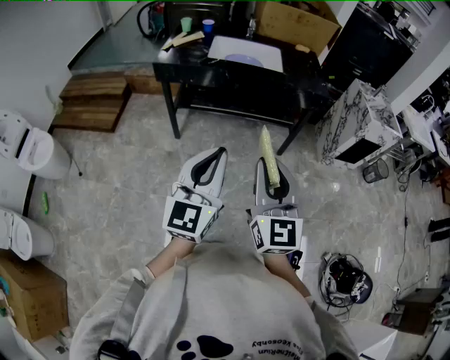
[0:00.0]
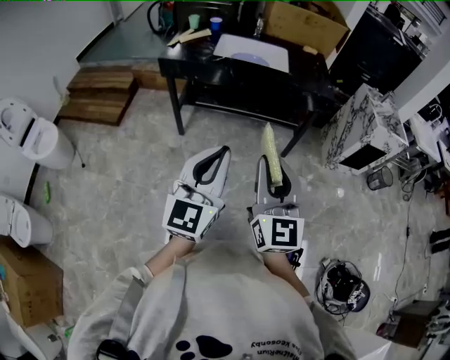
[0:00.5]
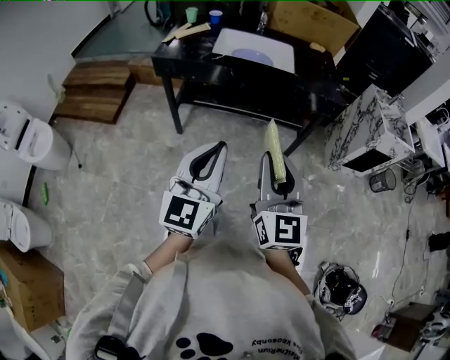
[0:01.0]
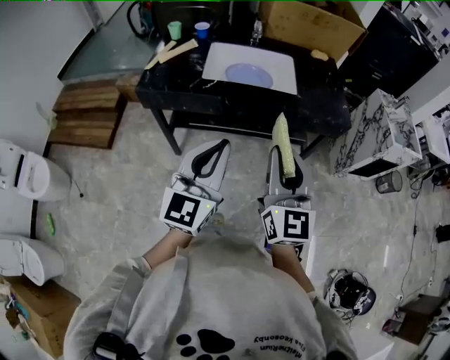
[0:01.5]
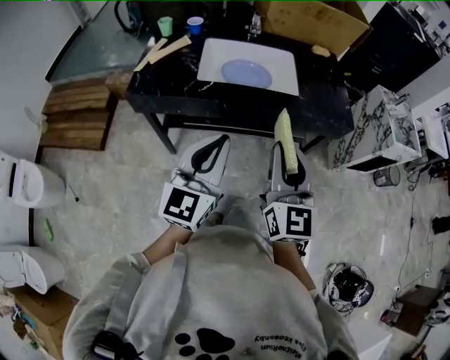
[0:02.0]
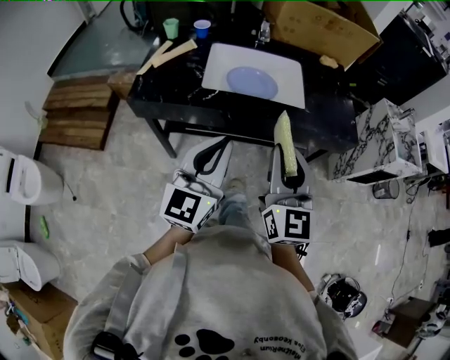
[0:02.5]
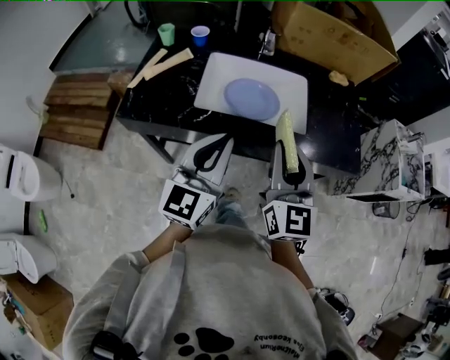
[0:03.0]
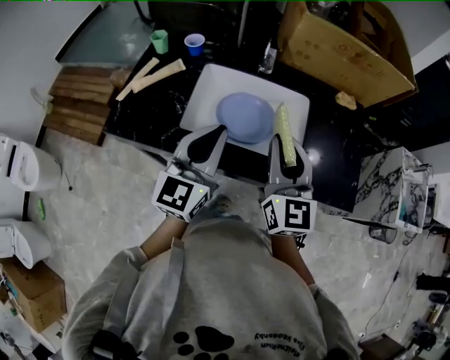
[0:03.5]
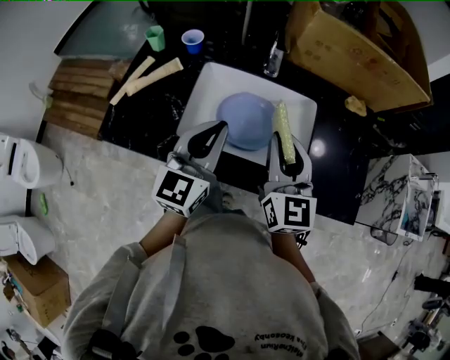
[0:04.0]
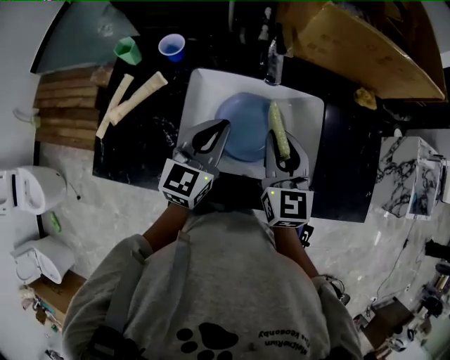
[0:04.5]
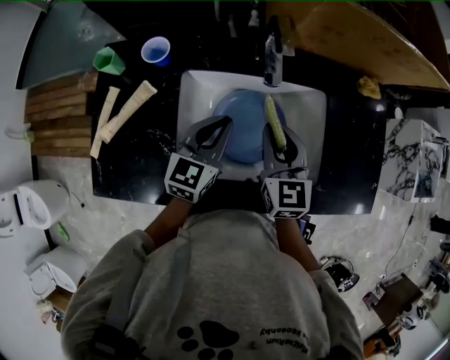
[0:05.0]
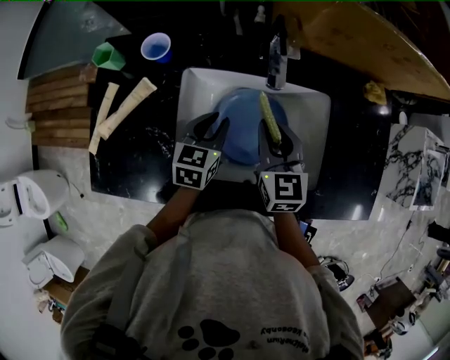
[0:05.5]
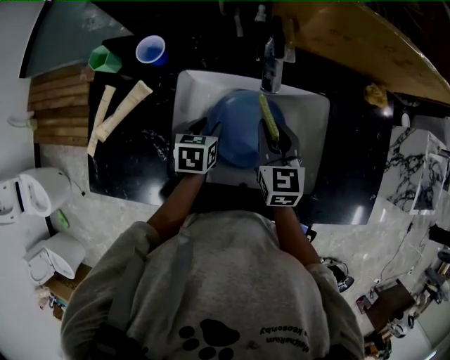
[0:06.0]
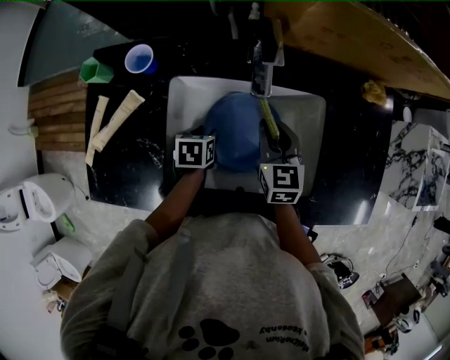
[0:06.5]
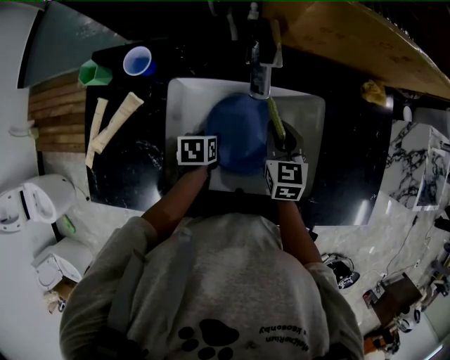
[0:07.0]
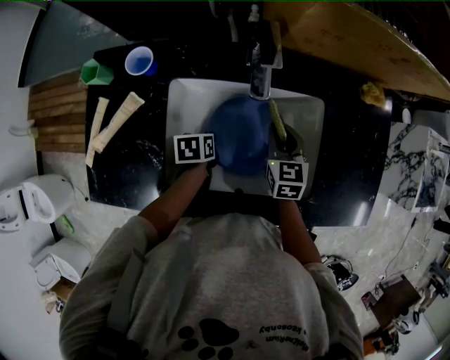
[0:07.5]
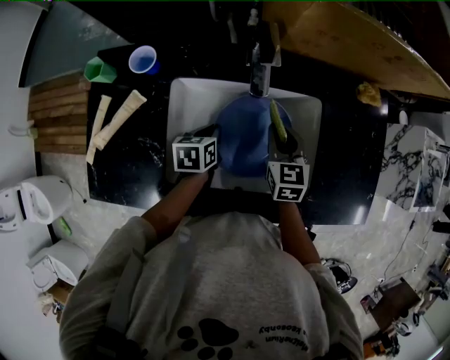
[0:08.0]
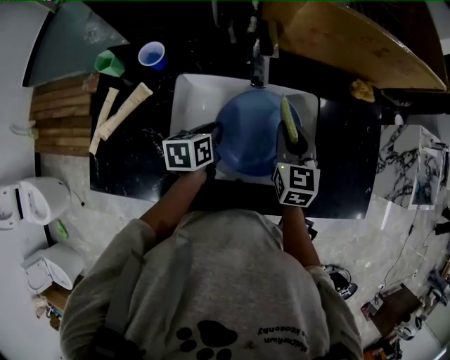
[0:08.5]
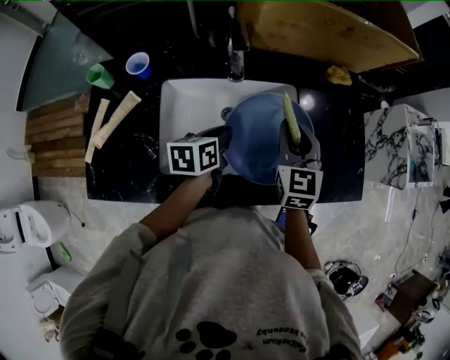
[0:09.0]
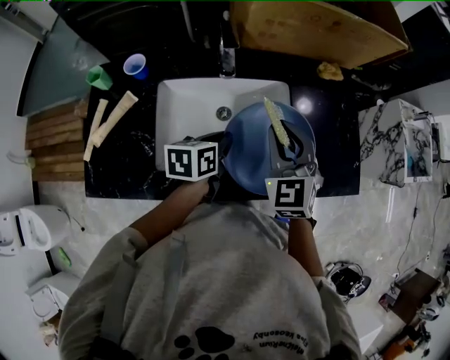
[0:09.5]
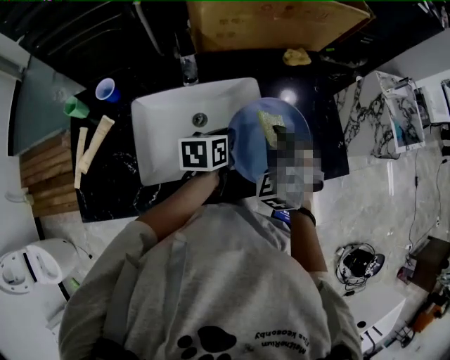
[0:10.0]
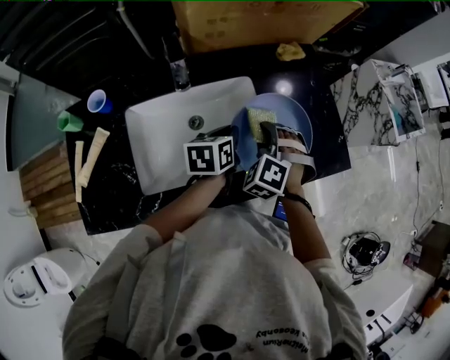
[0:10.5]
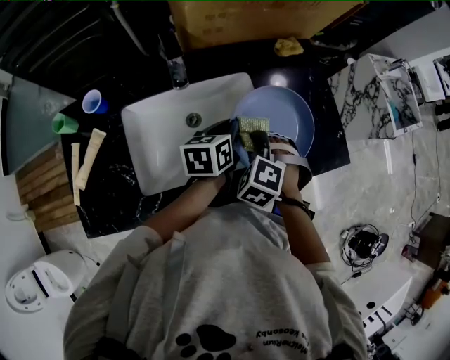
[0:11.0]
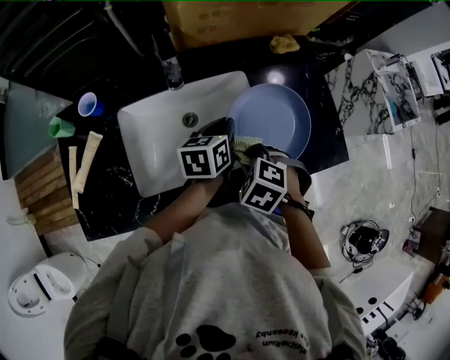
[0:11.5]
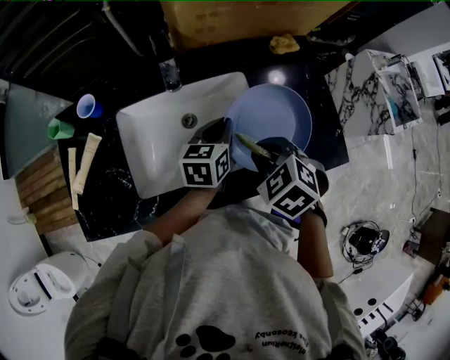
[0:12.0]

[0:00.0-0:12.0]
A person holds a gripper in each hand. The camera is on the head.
0:00.0 to 0:02.0: Both grippers move forward, some 35 cm.
0:02.0 to 0:04.0: Both grippers move forward, about 35 cm.
0:04.0 to 0:06.0: The grippers both shift downward and forward by about 25 cm. The right gripper turns by roughly 20 degrees. The left gripper tips its fingers downward by roughly 50 degrees, and opens.
0:06.0 to 0:08.0: The left gripper closes up, while the right gripper heads to the right, covering some 5 cm.
0:08.0 to 0:10.0: The right gripper goes about 20 cm to the right, upward and backward, and rolls counterclockwise, seen from behind, by roughly 40 degrees; the left gripper is displaced to the right and upward by approximately 20 cm, and turns by roughly 20 degrees.
0:10.0 to 0:12.0: The right gripper changes its angle by approximately 30 degrees.

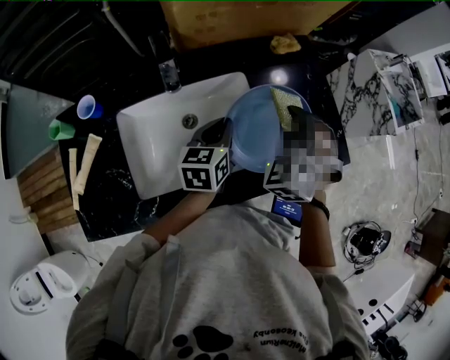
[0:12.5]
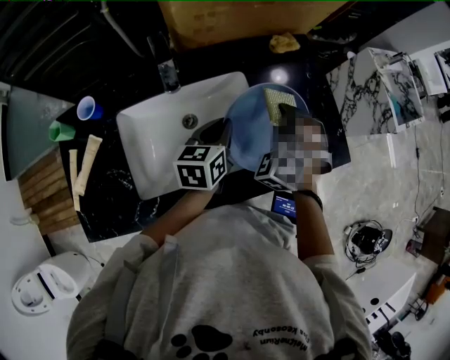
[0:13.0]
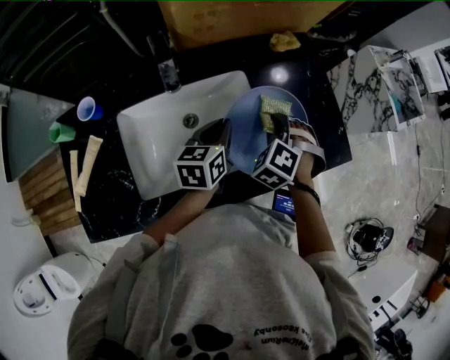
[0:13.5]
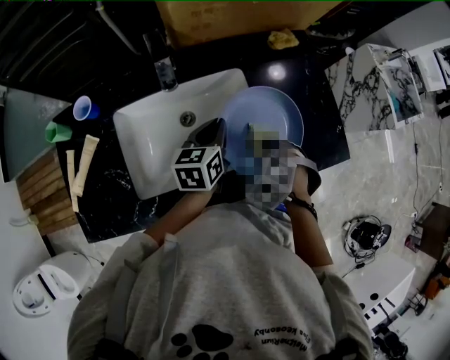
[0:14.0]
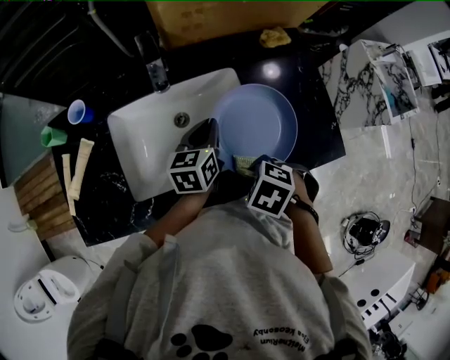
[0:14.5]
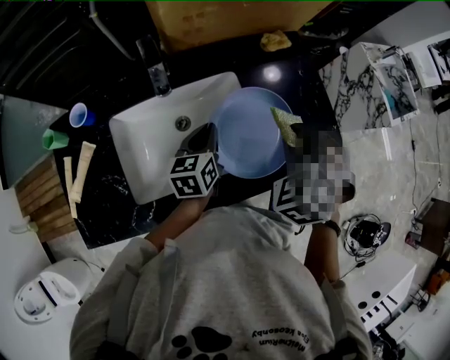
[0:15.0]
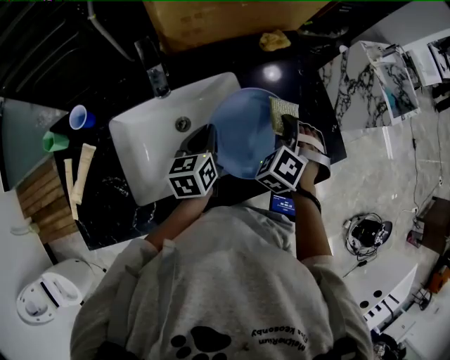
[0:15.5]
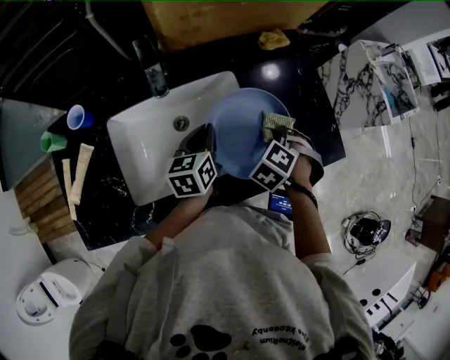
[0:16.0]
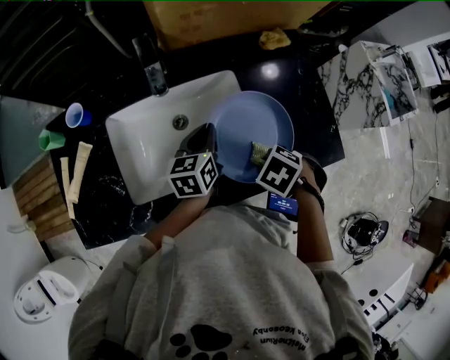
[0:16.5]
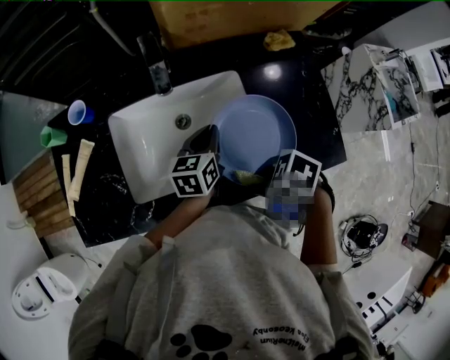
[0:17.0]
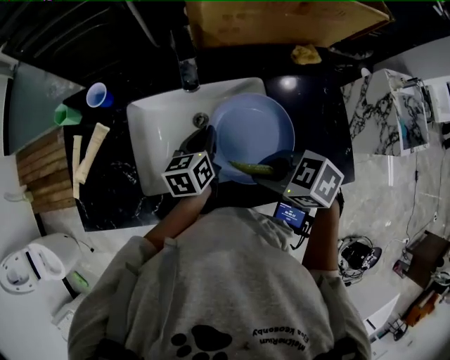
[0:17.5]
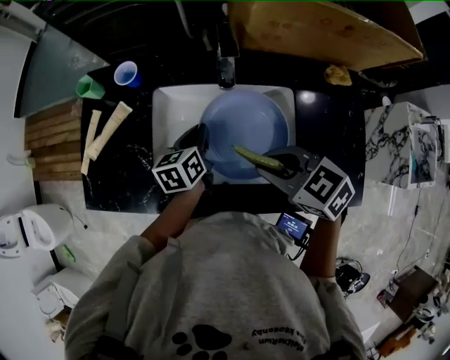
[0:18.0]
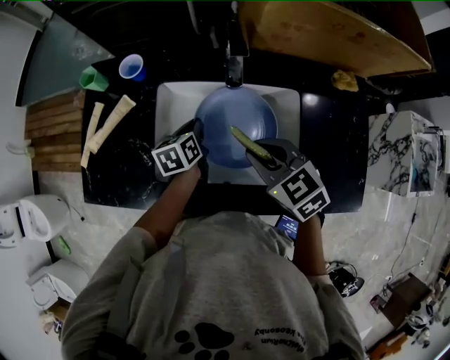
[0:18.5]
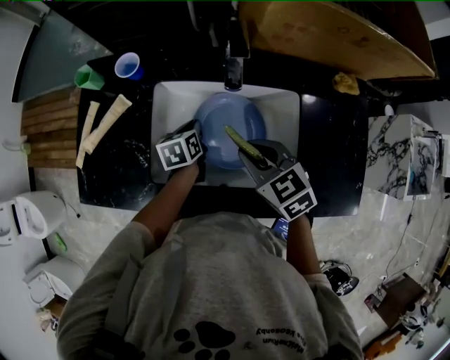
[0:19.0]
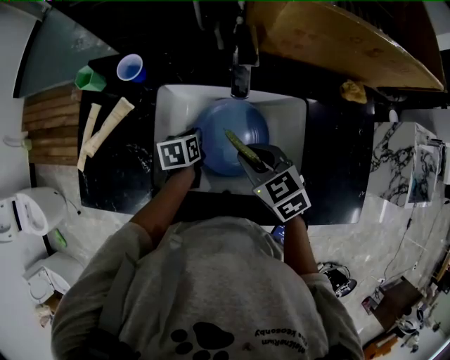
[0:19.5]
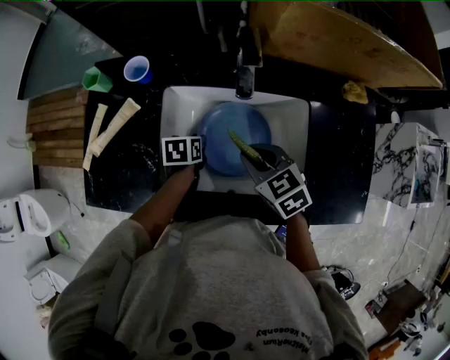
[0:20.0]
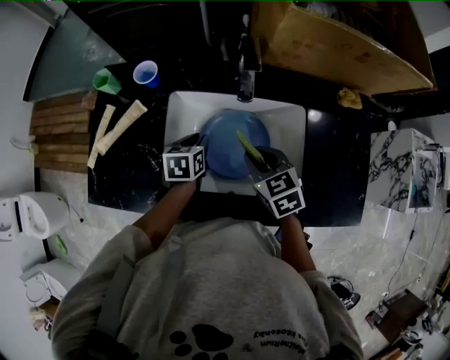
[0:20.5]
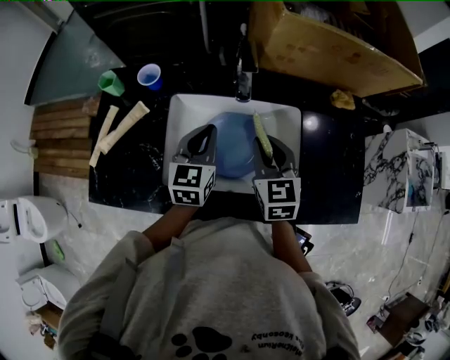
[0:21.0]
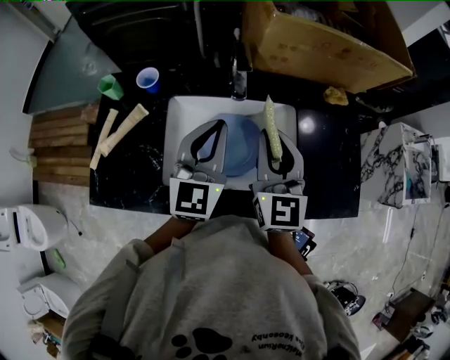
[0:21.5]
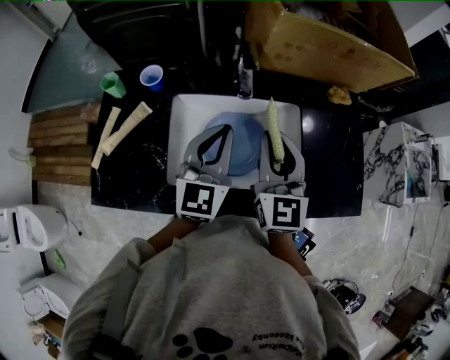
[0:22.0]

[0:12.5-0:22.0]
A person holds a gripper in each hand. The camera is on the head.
0:12.5 to 0:14.5: The right gripper moves roughly 20 cm, and tilts its fingers some 40 degrees downward.
0:14.5 to 0:16.5: The right gripper reaches roughly 15 cm upward, then returns.
0:16.5 to 0:18.0: The right gripper ends up approximately 20 cm from where it was, and tips its fingers upward by roughly 40 degrees. The left gripper changes place by roughly 15 cm, and changes its angle by some 20 degrees.
0:18.0 to 0:20.0: The right gripper heads downward and forward, covering roughly 10 cm. Meanwhile the left gripper goes some 15 cm downward, and turns by some 30 degrees.
0:20.0 to 0:22.0: The left gripper moves upward, about 30 cm, tilts its fingers roughly 50 degrees upward, and closes. Meanwhile the right gripper is displaced upward by some 15 cm, and points its fingers about 40 degrees further upward.

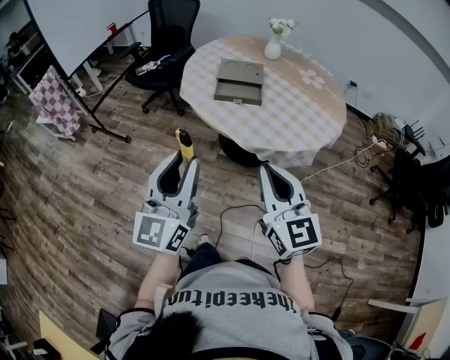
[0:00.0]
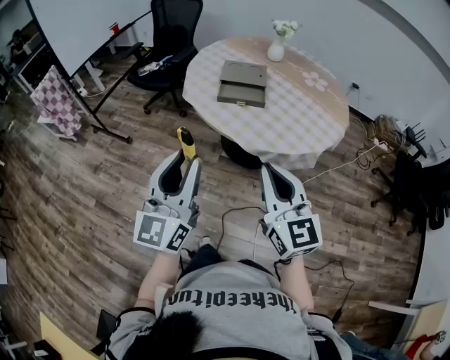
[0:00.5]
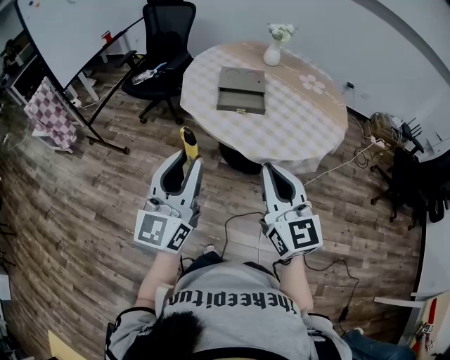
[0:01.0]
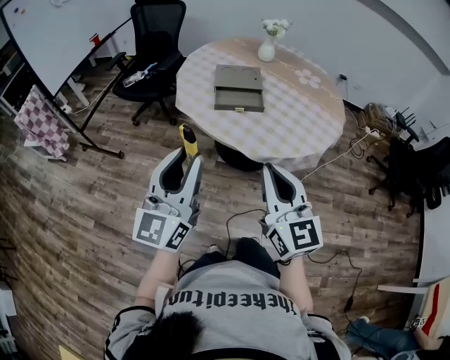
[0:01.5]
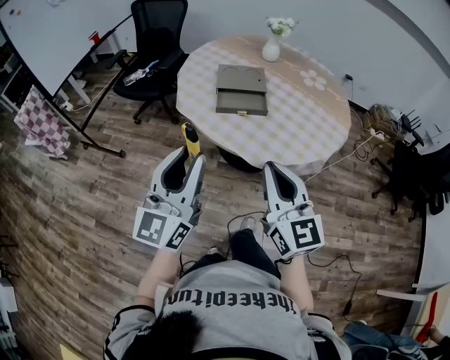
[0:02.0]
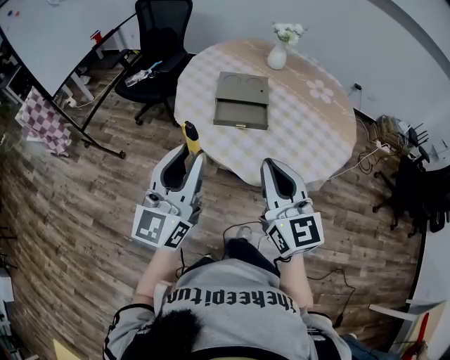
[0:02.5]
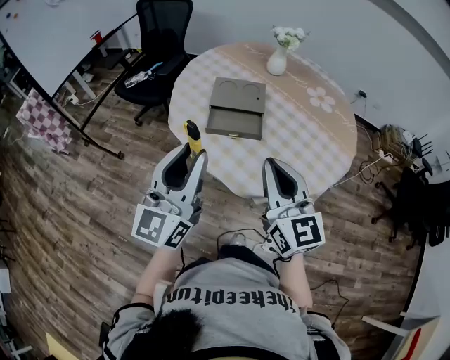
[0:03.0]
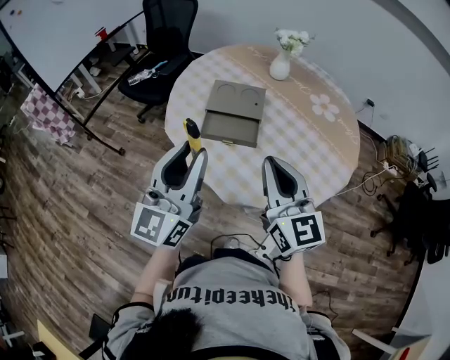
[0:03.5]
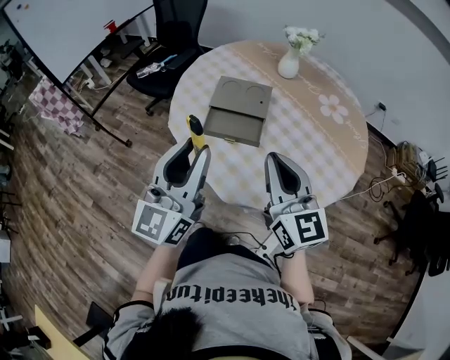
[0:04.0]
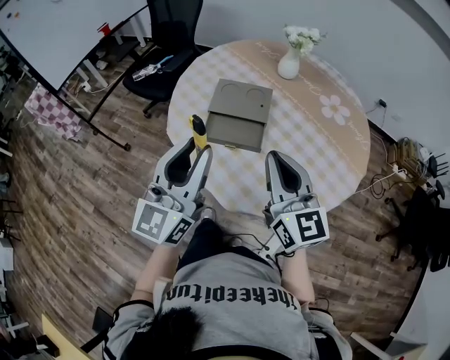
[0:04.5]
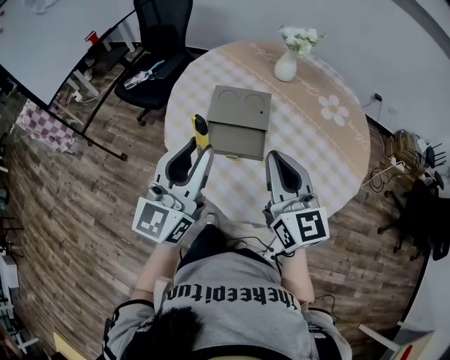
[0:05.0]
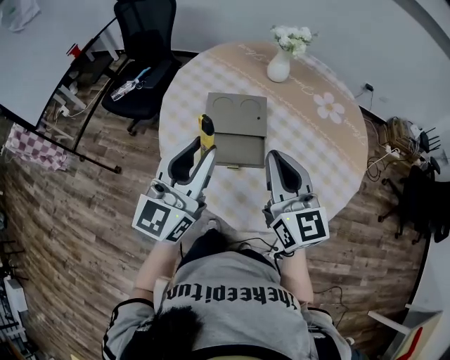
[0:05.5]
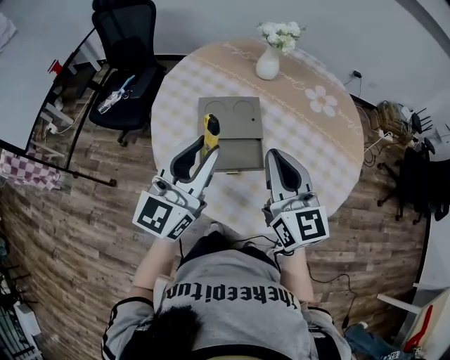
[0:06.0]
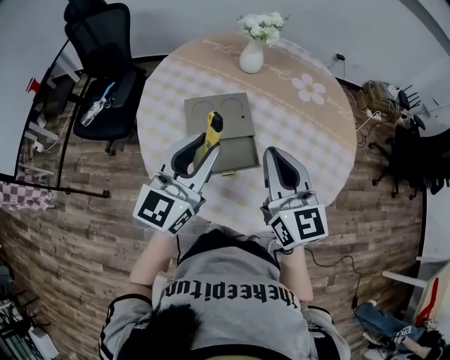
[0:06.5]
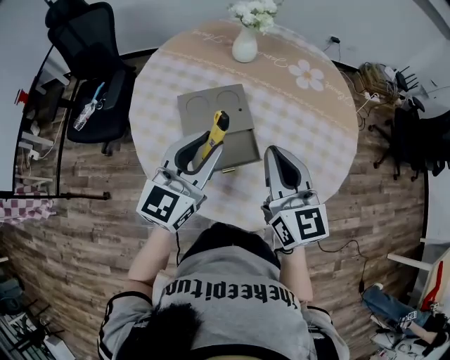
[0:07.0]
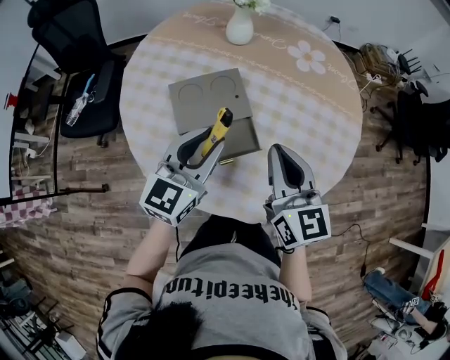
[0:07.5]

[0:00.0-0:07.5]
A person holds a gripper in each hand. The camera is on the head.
0:00.0 to 0:02.0: The two grippers go roughly 10 cm forward.
0:02.0 to 0:04.0: The grippers both shift forward and to the right by roughly 20 cm.
0:04.0 to 0:05.5: Both grippers travel together forward, approximately 15 cm.
0:05.5 to 0:07.5: The right gripper moves downward and forward, roughly 10 cm, and changes its angle by roughly 20 degrees. The left gripper travels downward and forward by approximately 15 cm, and turns by some 30 degrees.
